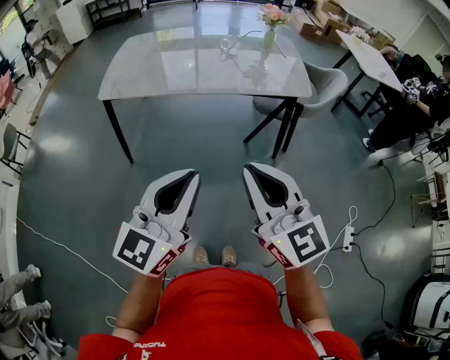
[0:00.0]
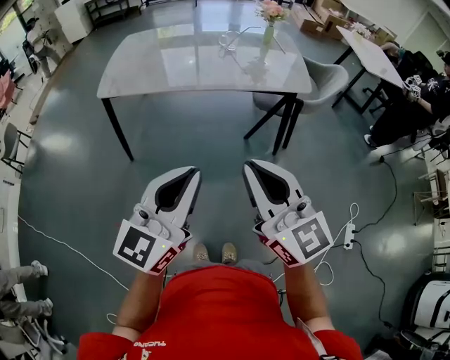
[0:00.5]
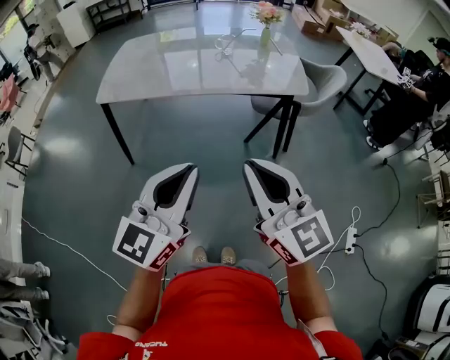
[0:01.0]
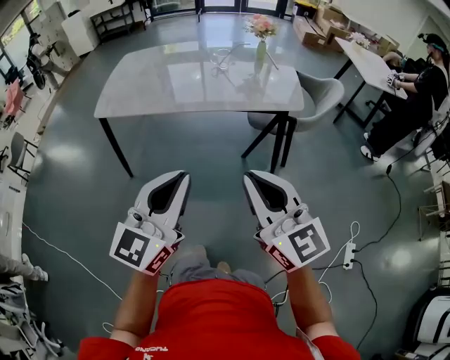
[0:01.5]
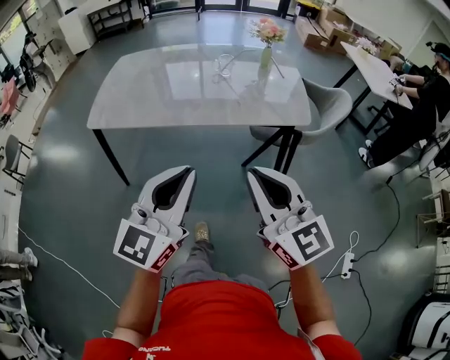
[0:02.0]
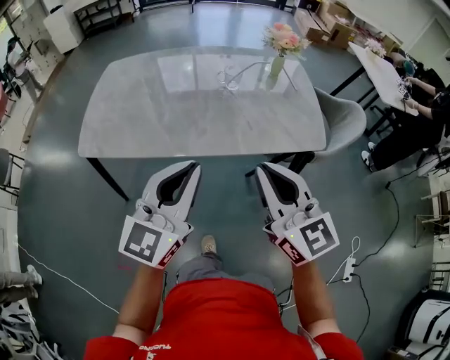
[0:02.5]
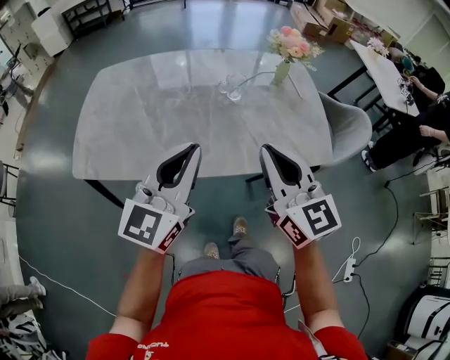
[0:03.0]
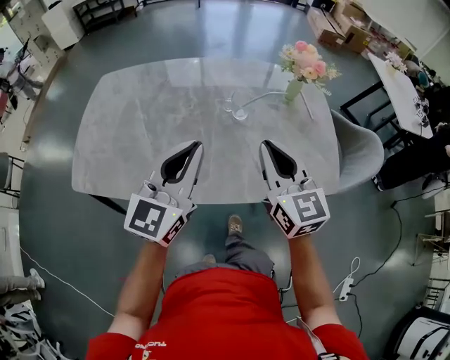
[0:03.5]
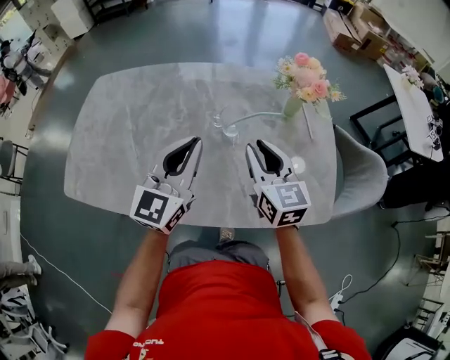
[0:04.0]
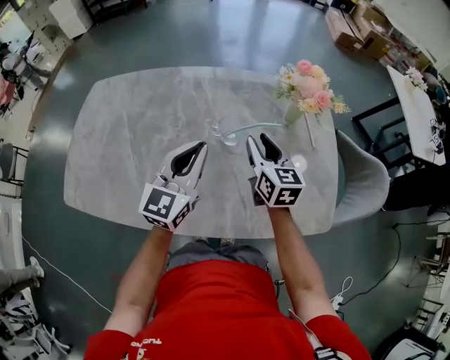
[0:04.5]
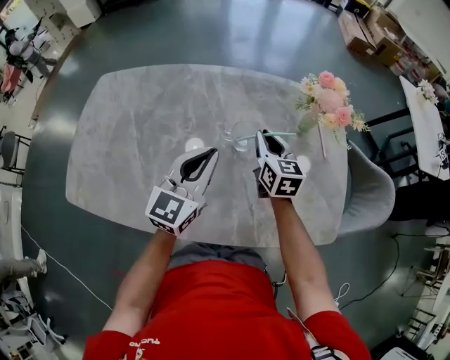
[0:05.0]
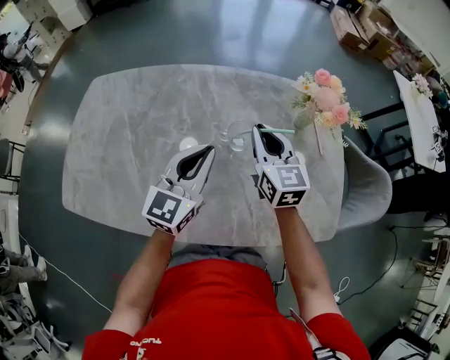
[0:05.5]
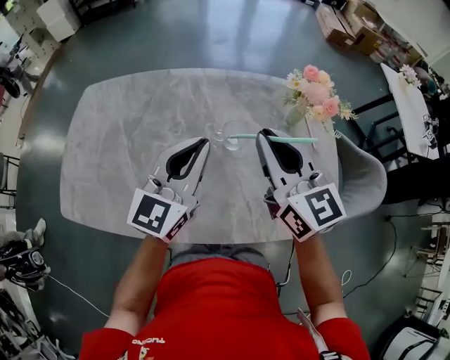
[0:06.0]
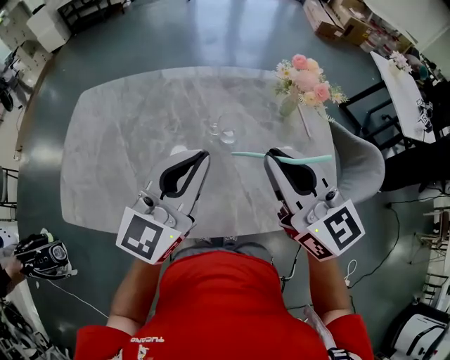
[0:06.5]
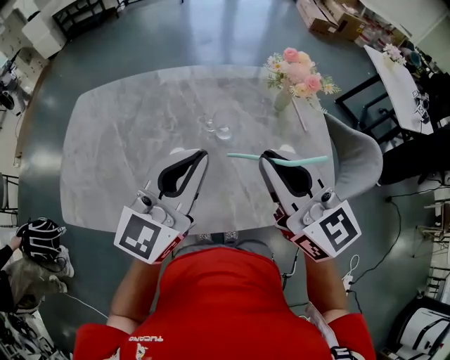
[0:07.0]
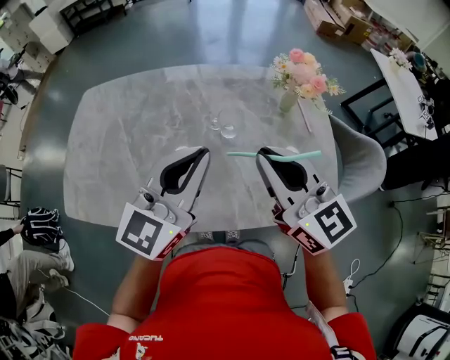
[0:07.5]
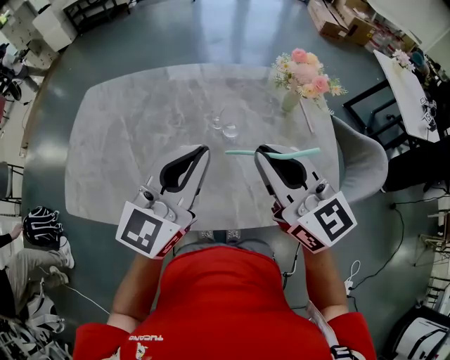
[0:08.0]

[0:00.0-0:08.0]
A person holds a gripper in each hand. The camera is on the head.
0:00.0 to 0:02.0: Both grippers travel together forward and to the right, approximately 15 cm.
0:02.0 to 0:04.0: Both grippers are carried forward, about 50 cm.
0:04.0 to 0:06.0: The right gripper moves upward, about 10 cm. The left gripper moves forward, some 5 cm, and moves some 5 cm downward and comes back.
0:06.0 to 0:08.0: The grippers both shift backward by approximately 10 cm.

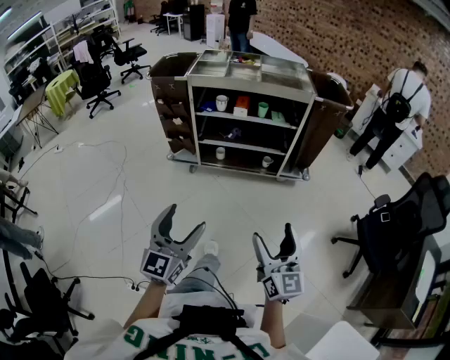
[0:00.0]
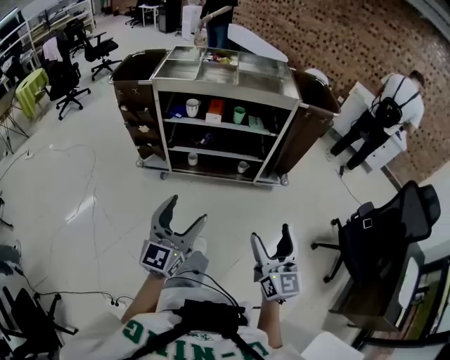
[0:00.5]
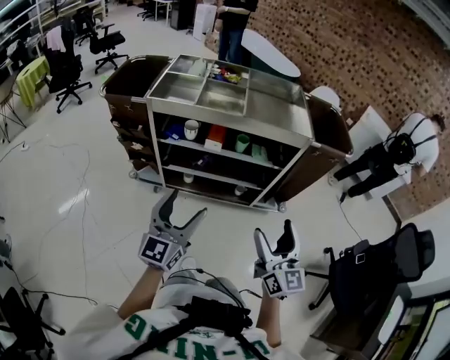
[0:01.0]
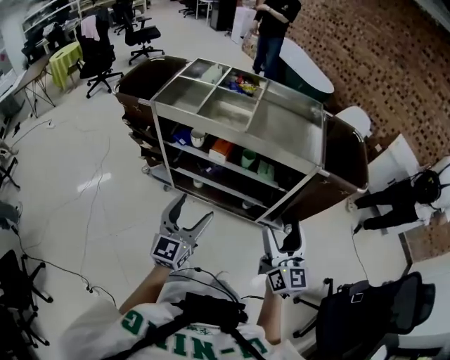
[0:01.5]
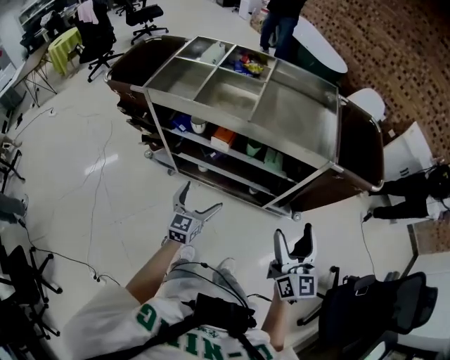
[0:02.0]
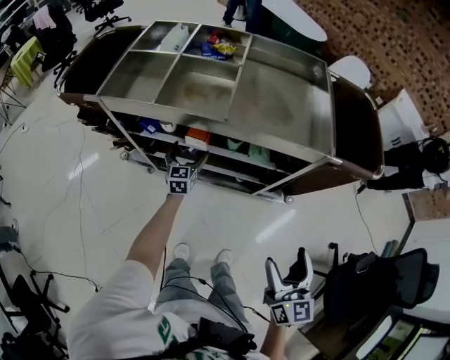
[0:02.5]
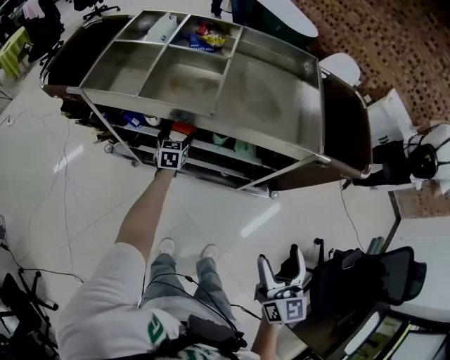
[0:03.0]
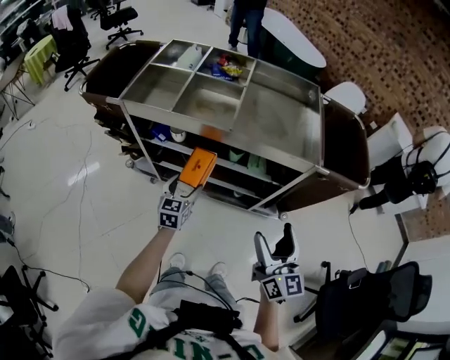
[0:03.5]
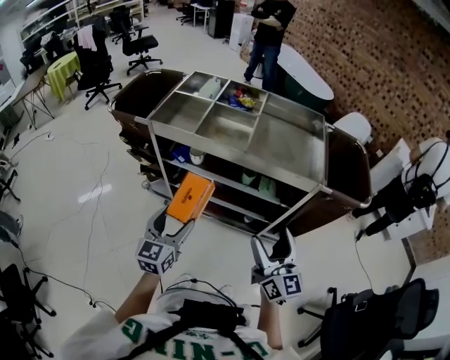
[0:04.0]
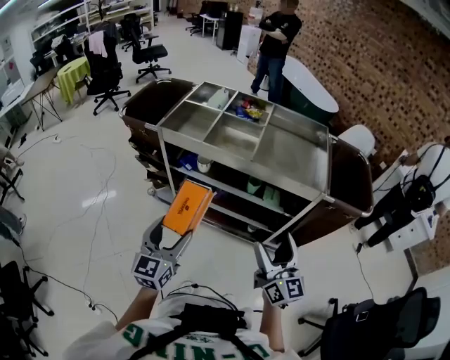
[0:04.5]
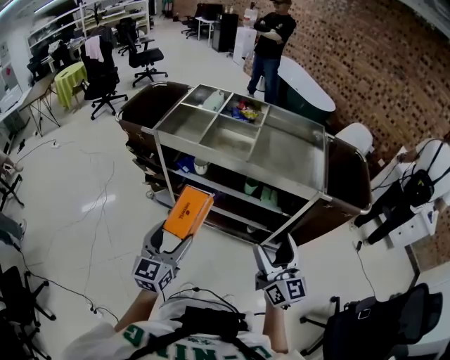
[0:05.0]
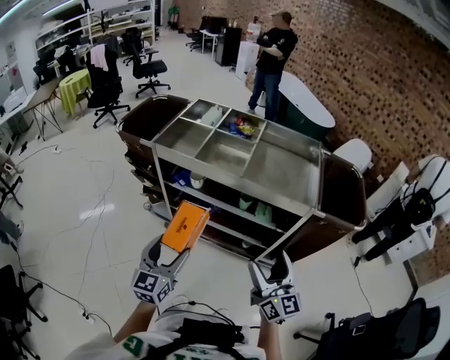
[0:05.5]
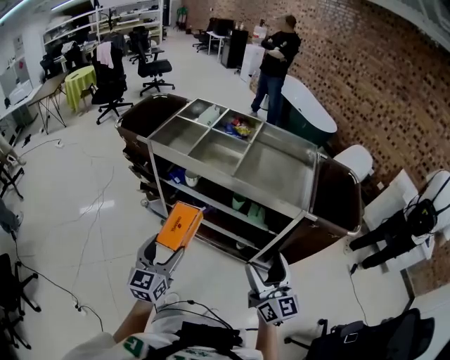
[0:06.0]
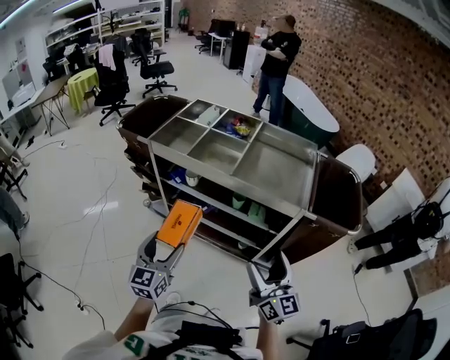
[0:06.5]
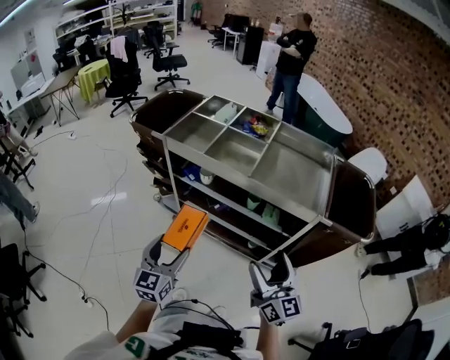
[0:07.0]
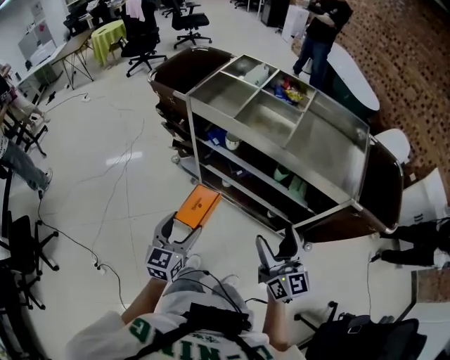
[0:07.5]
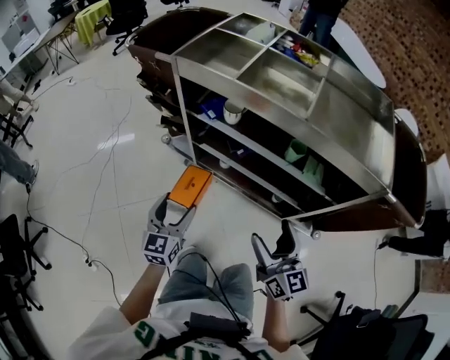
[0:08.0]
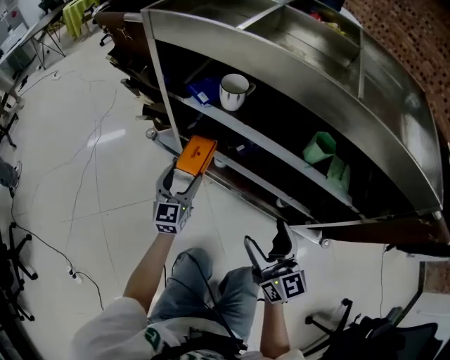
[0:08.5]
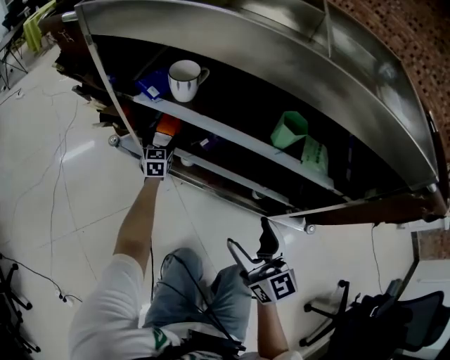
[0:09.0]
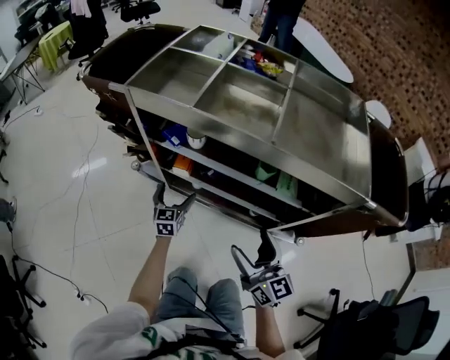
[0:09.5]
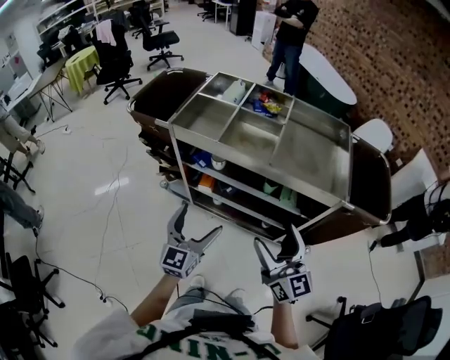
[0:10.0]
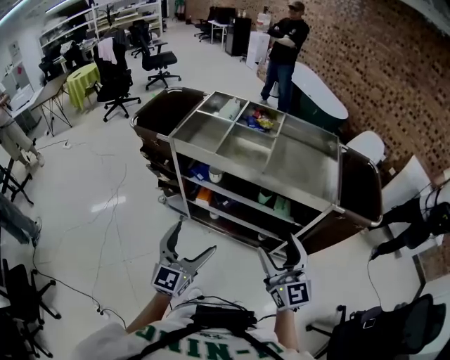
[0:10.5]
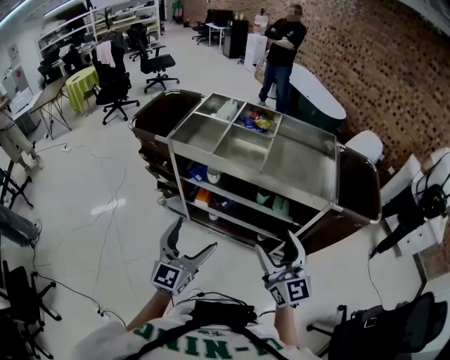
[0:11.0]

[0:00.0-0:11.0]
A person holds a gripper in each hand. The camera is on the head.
0:00.0 to 0:02.0: Both grippers are carried forward, about 60 cm. The left gripper swivels some 20 degrees.
0:02.0 to 0:03.5: The left gripper moves approximately 30 cm forward and comes back, and closes.
0:03.5 to 0:05.5: The left gripper travels upward and backward by about 25 cm; the right gripper moves some 5 cm.
0:05.5 to 0:07.5: The left gripper travels downward by some 10 cm. The right gripper travels to the left by approximately 5 cm.
0:07.5 to 0:09.0: The left gripper travels downward and forward by some 70 cm. The right gripper travels downward by roughly 35 cm.
0:09.0 to 0:11.0: The left gripper heads upward and backward, covering approximately 70 cm, and rotates roughly 30 degrees, while the right gripper is displaced upward by roughly 40 cm.

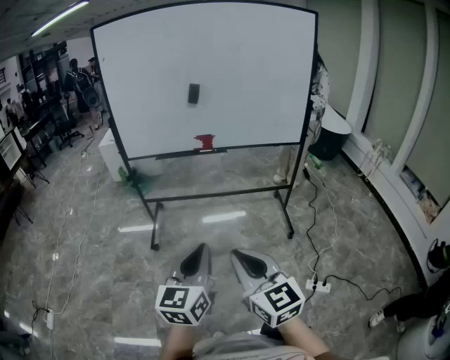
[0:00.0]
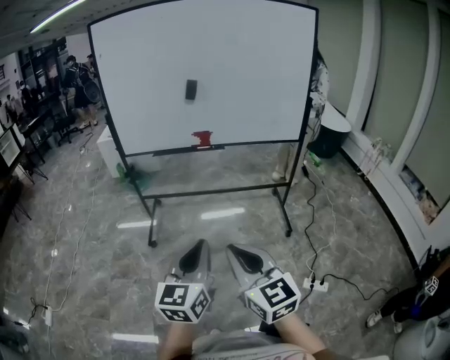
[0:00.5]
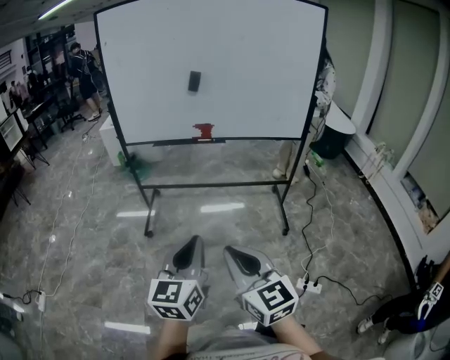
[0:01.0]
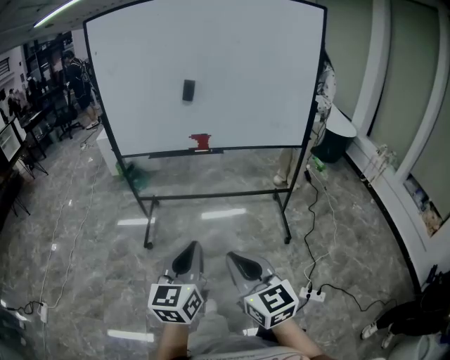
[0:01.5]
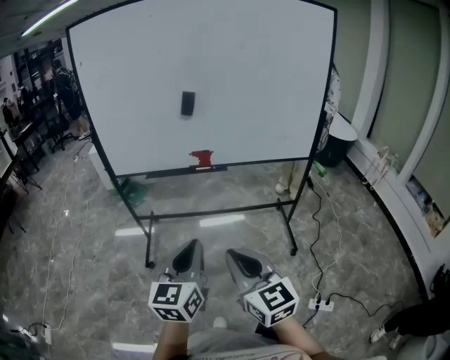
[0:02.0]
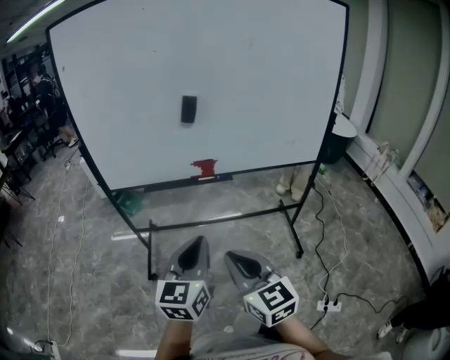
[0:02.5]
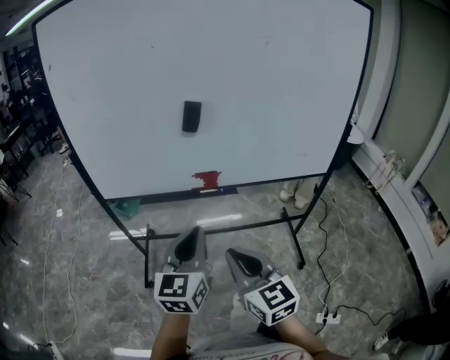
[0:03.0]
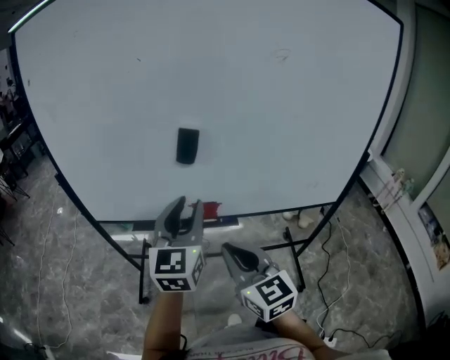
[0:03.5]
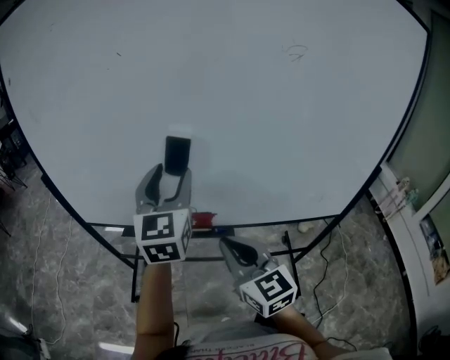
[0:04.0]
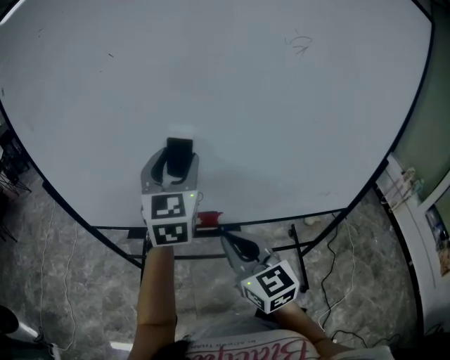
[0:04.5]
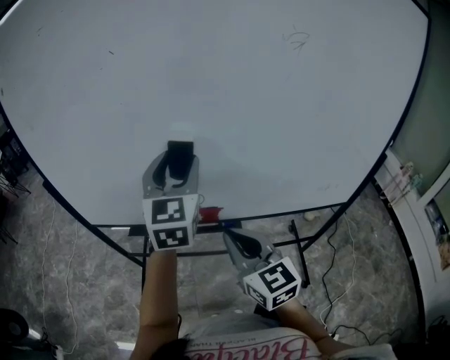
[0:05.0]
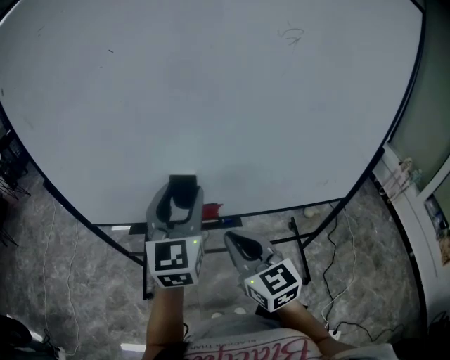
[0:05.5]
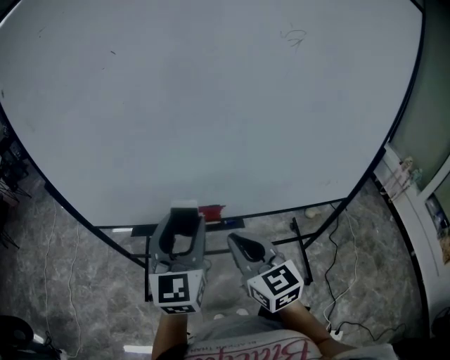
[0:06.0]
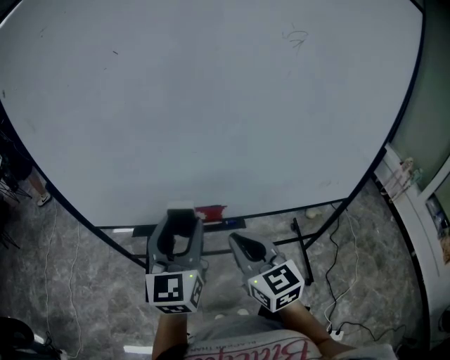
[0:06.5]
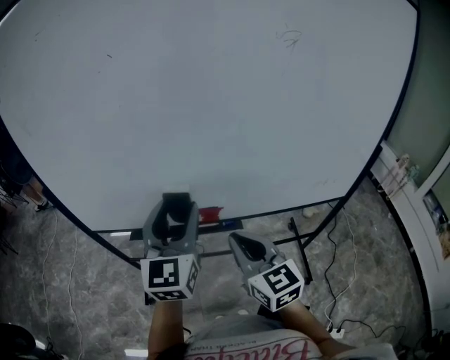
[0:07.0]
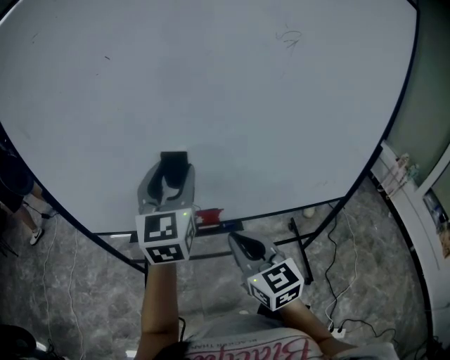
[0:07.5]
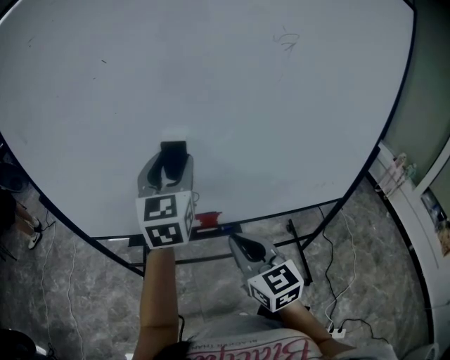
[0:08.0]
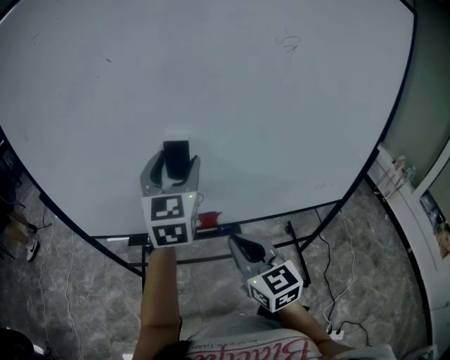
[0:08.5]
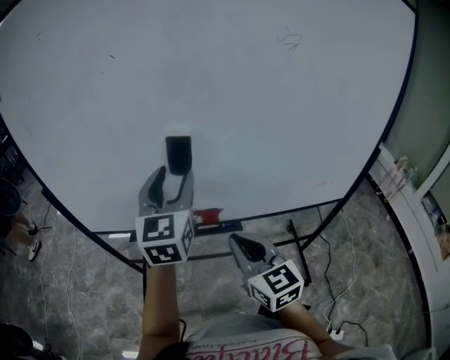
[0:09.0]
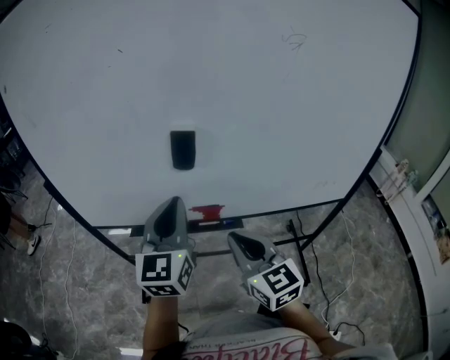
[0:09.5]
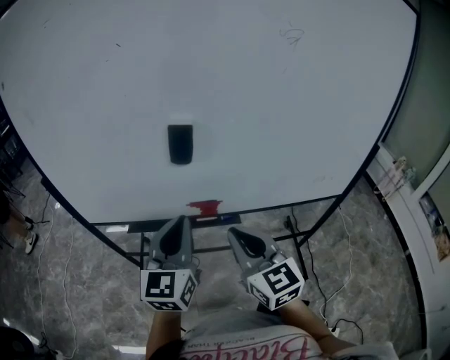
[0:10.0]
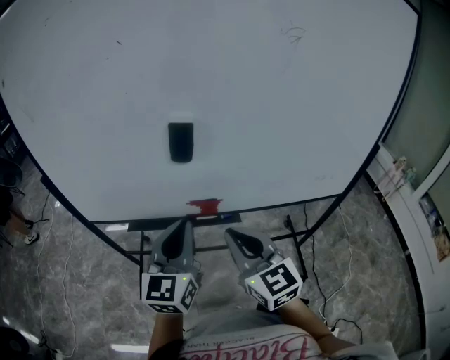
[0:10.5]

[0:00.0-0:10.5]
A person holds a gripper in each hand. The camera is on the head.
0:00.0 to 0:02.0: Both grippers travel together forward, roughly 15 cm.
0:02.0 to 0:04.0: Both grippers travel together forward, roughly 40 cm. The left gripper changes its angle by about 20 degrees, and opens its fingers.
0:04.0 to 0:06.5: The left gripper shifts some 10 cm backward and downward.
0:06.5 to 0:08.5: The left gripper travels forward and upward by roughly 15 cm.
0:08.5 to 0:10.5: The left gripper moves backward and downward, some 20 cm, and closes up.
